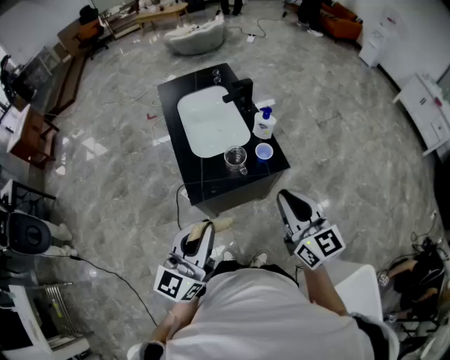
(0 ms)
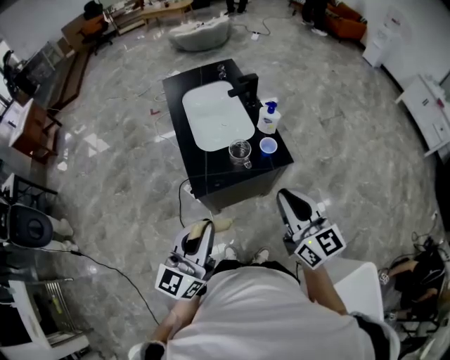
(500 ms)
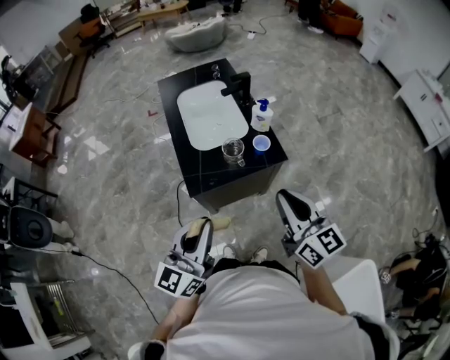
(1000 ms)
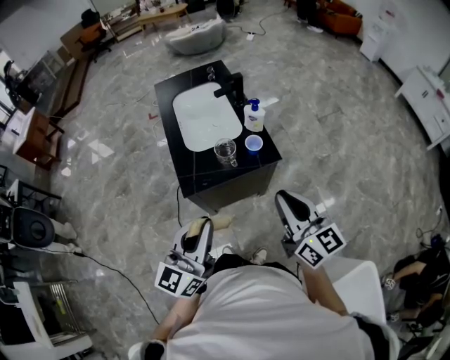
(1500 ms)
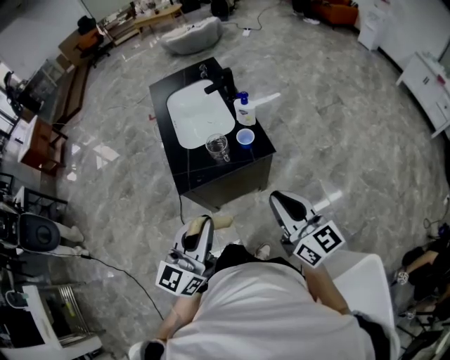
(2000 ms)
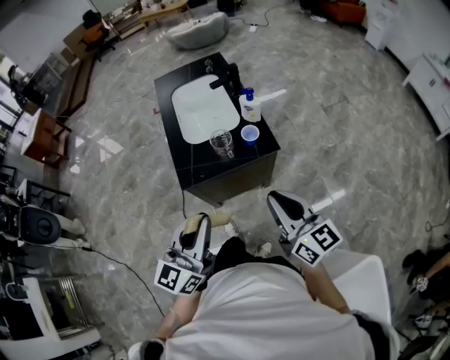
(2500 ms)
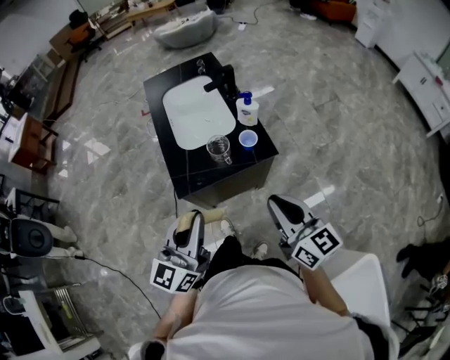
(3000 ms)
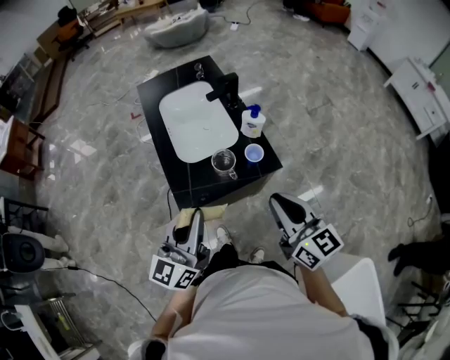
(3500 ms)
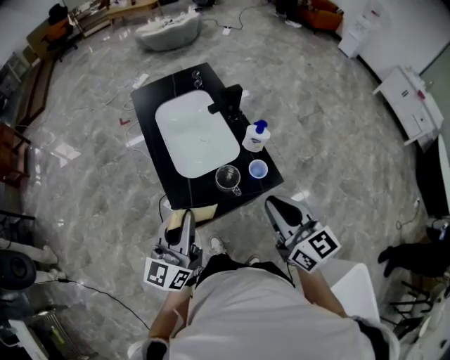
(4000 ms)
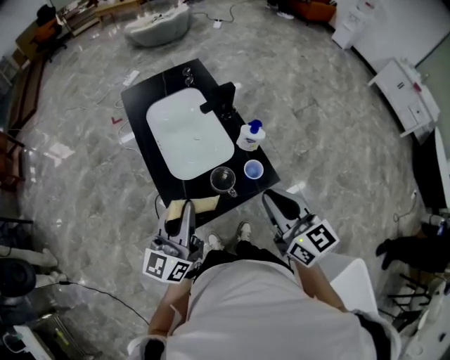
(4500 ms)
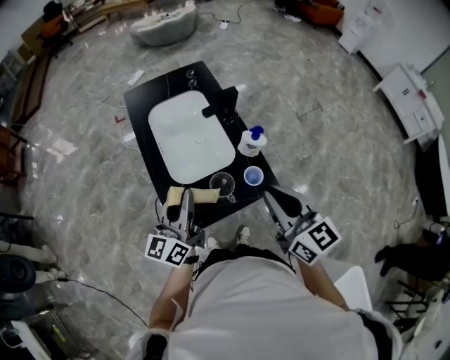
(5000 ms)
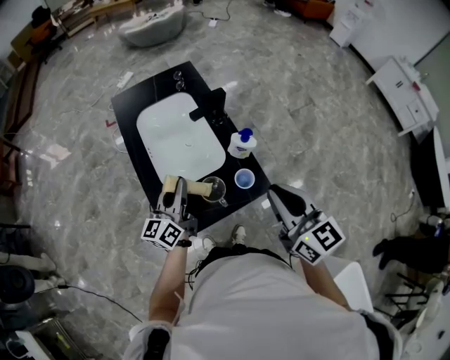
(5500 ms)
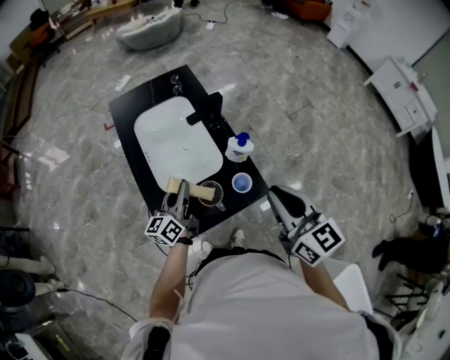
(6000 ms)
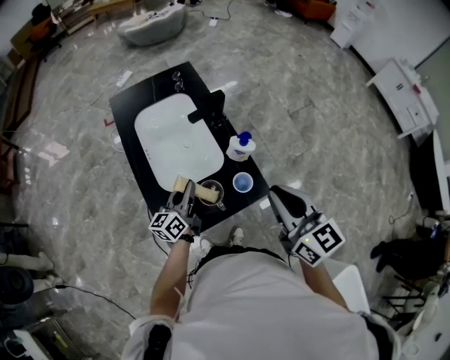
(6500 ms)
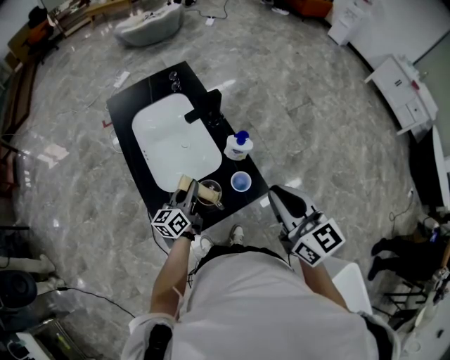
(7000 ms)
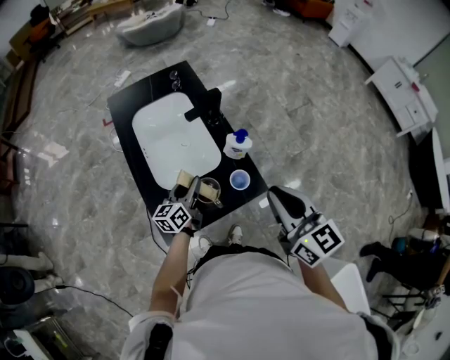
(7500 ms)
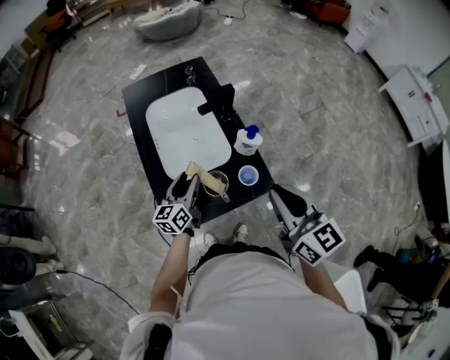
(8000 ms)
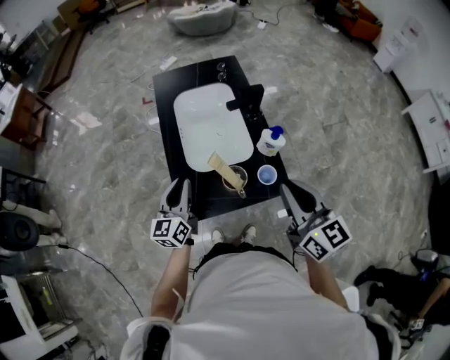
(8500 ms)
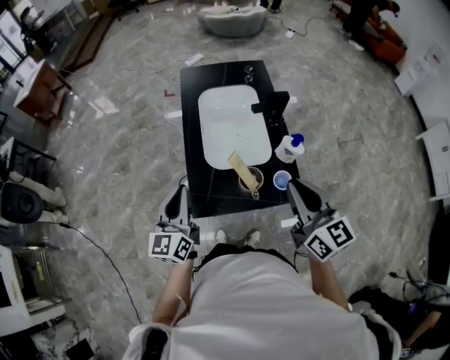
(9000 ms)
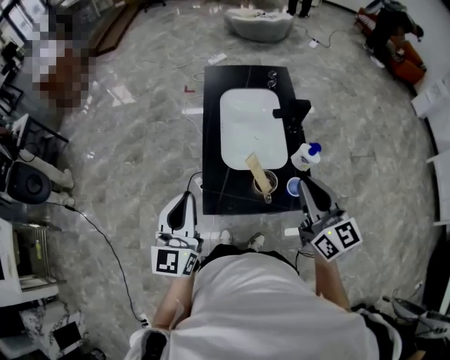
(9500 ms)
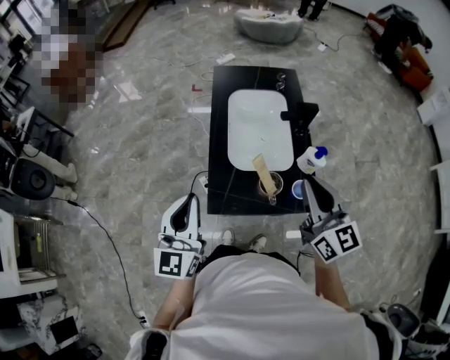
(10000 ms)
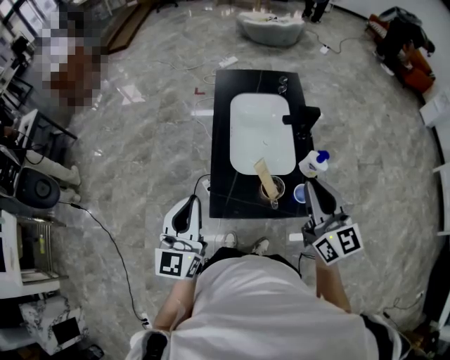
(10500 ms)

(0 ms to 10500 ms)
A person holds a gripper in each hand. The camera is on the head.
0 ms - 2000 ms: The right gripper moves to the right and backward, roughly 10 cm. The left gripper heads to the right, covering roughly 10 cm.
2000 ms - 4000 ms: The two grippers go approximately 20 cm forward and to the left.
4000 ms - 6500 ms: The left gripper is displaced downward and forward by about 25 cm, and turns by some 20 degrees, while the right gripper is displaced forward and to the right by roughly 10 cm.
6500 ms - 8500 ms: The left gripper travels to the left, backward and upward by roughly 15 cm, swivels some 30 degrees, and opens, then closes again.
8500 ms - 10500 ms: The right gripper moves forward, roughly 5 cm. The left gripper goes roughly 20 cm upward, backward and to the left, and turns by some 20 degrees.

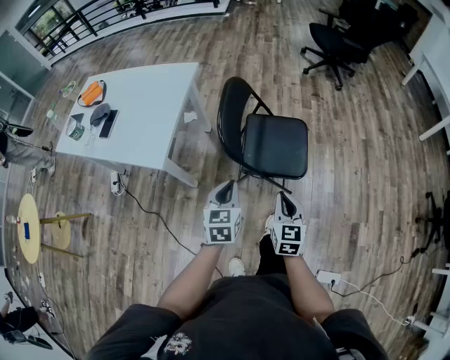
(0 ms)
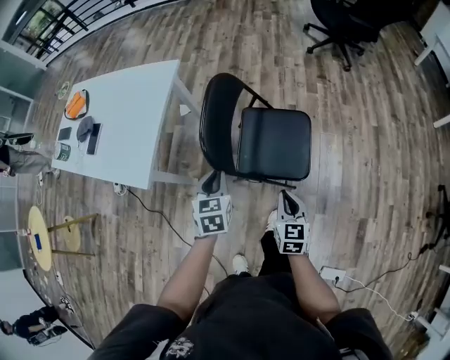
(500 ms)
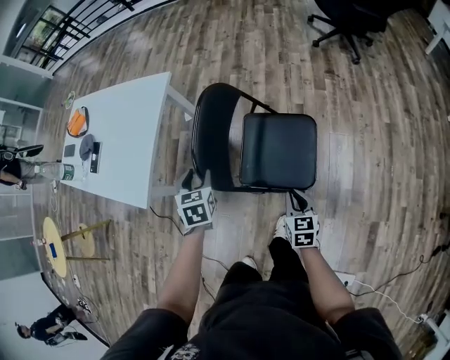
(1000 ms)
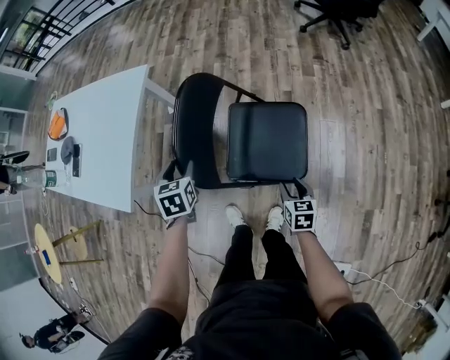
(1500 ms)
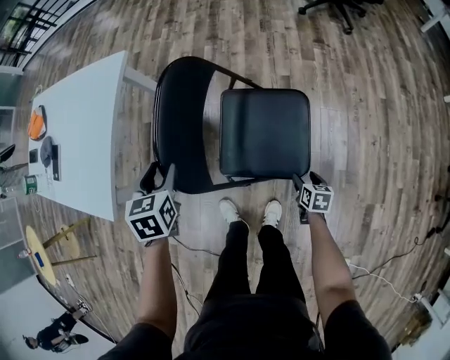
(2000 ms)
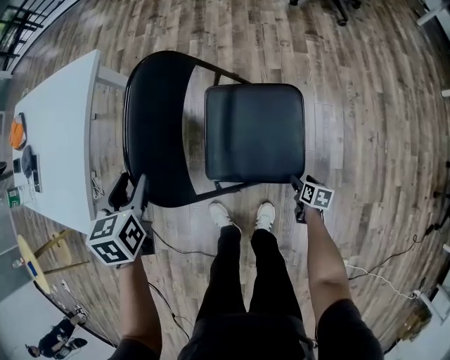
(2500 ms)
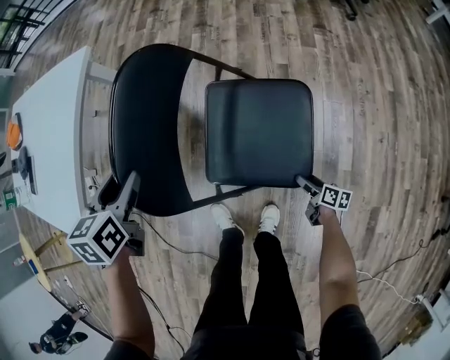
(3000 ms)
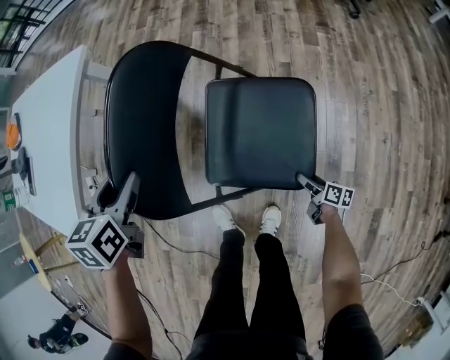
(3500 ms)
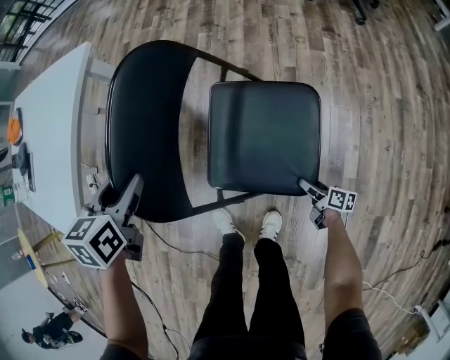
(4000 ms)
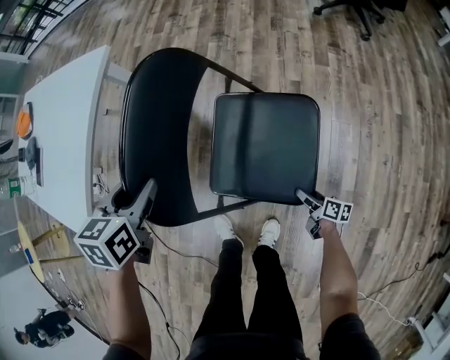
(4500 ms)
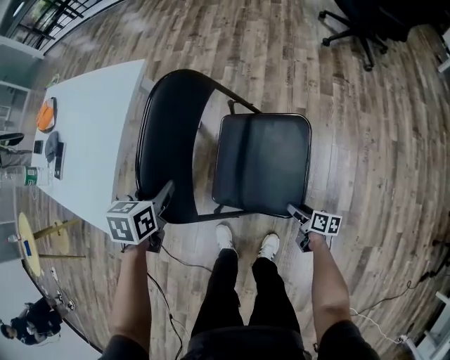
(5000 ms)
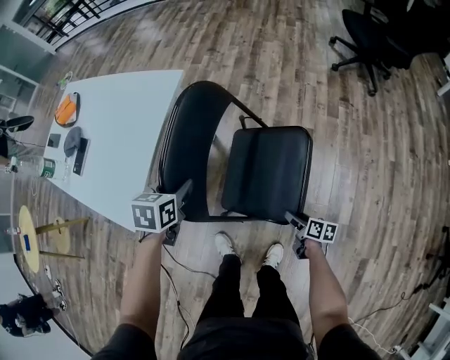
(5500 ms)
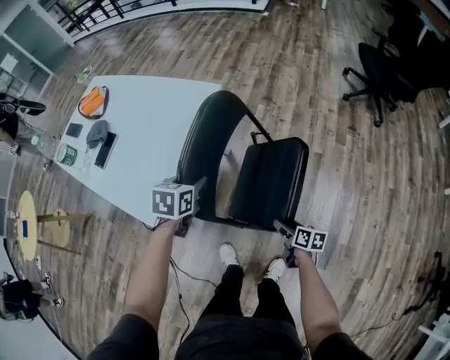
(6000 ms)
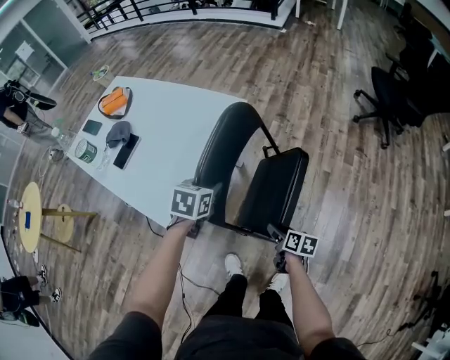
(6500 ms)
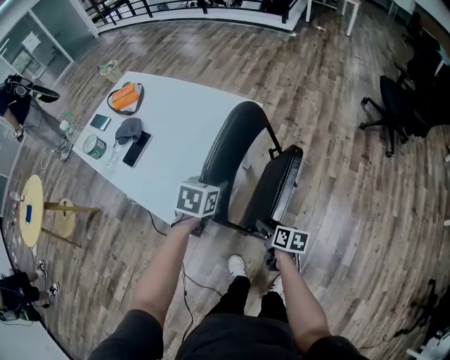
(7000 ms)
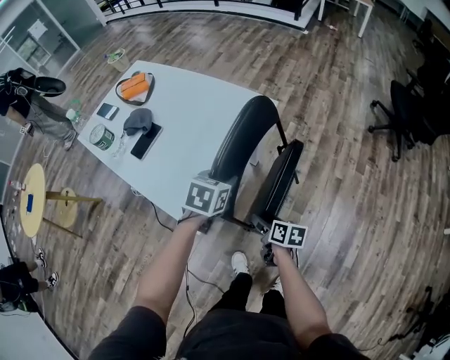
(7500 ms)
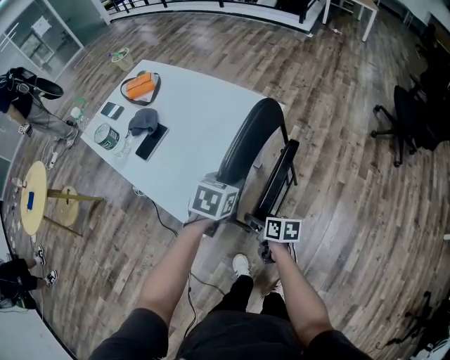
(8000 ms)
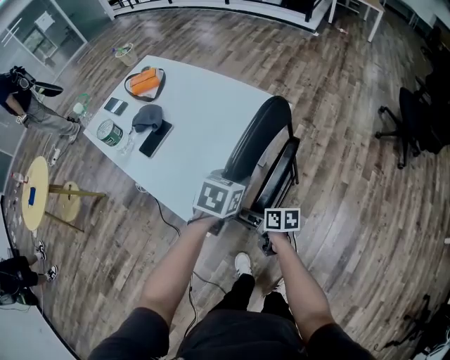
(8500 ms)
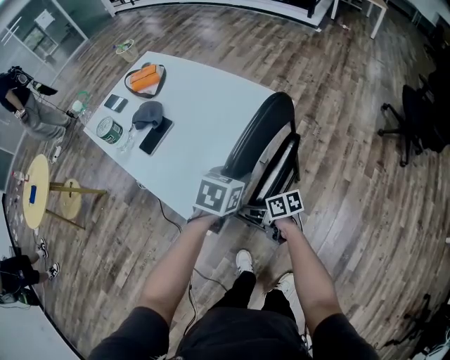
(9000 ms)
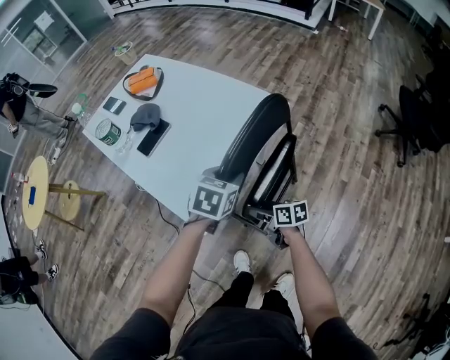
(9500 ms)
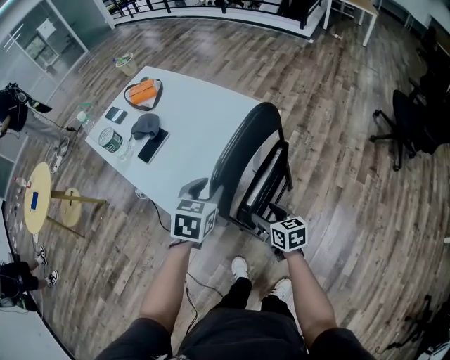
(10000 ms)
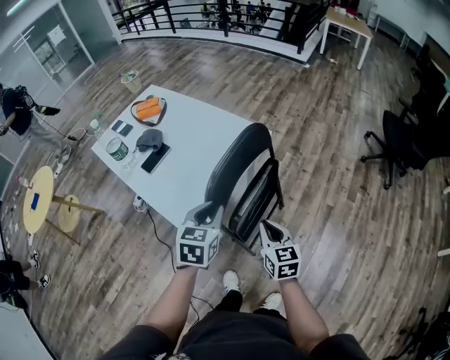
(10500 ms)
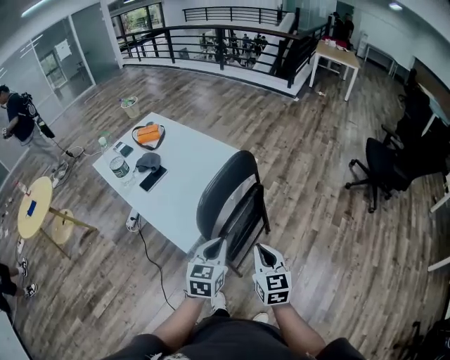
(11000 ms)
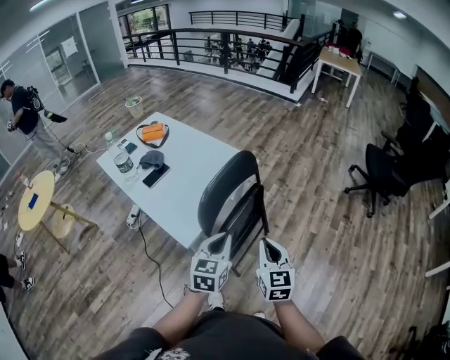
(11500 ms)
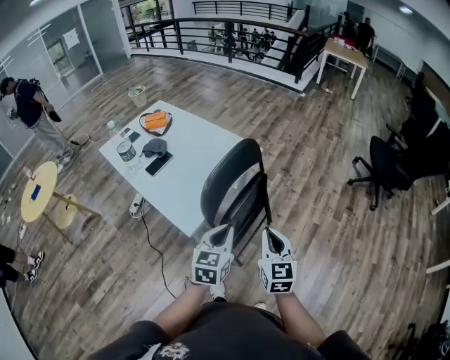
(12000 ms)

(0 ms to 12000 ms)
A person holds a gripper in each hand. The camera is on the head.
0 ms - 2000 ms: The right gripper travels downward, to the right and forward by some 50 cm, points its fingers some 30 degrees further downward, and opens. Meanwhile the left gripper goes about 30 cm forward, turns by about 20 degrees, and opens up.
2000 ms - 4000 ms: The left gripper is displaced downward by some 5 cm, while the right gripper heads downward, covering about 15 cm, and turns by about 40 degrees.
4000 ms - 6000 ms: The left gripper moves to the left and upward, roughly 15 cm. The right gripper goes approximately 35 cm upward and to the left.
6000 ms - 8000 ms: The left gripper moves to the left, some 10 cm. The right gripper moves to the left and forward, about 30 cm.
8000 ms - 10000 ms: The grippers both shift upward by approximately 5 cm. The right gripper turns by about 30 degrees.
10000 ms - 12000 ms: The right gripper heads upward and backward, covering approximately 25 cm, swivels roughly 40 degrees, and closes. The left gripper heads backward, to the right and upward, covering about 25 cm, swivels some 20 degrees, and closes its fingers.

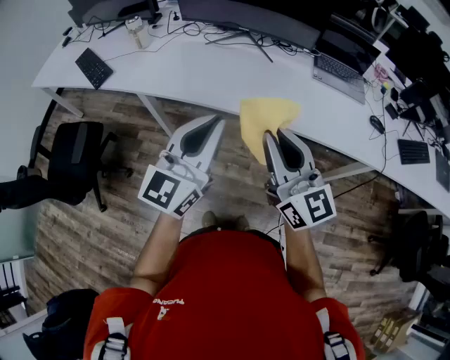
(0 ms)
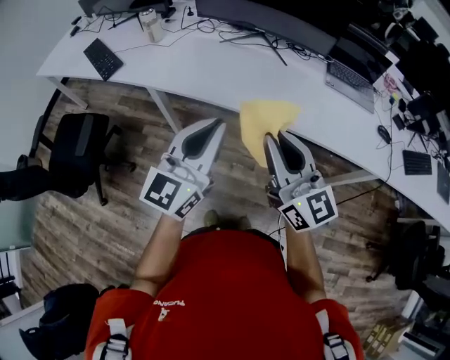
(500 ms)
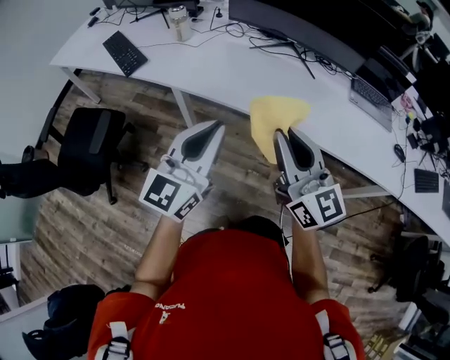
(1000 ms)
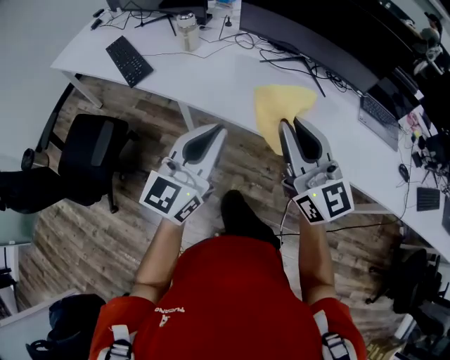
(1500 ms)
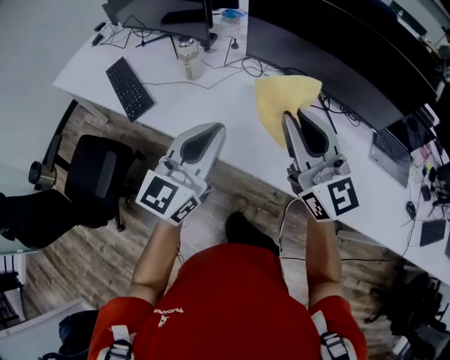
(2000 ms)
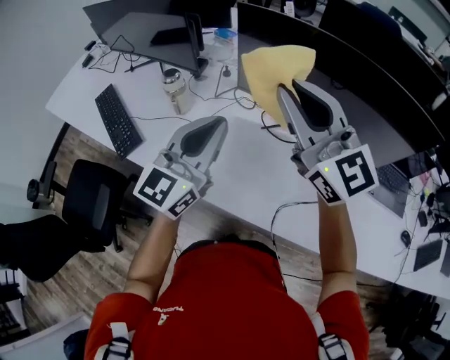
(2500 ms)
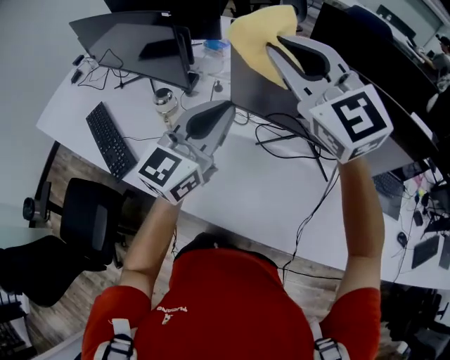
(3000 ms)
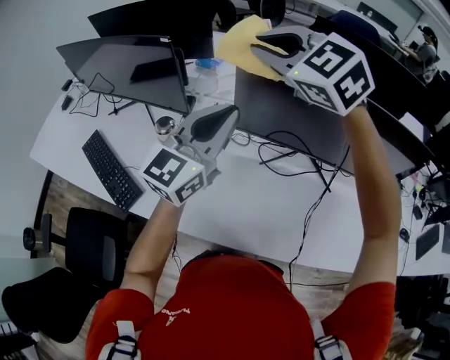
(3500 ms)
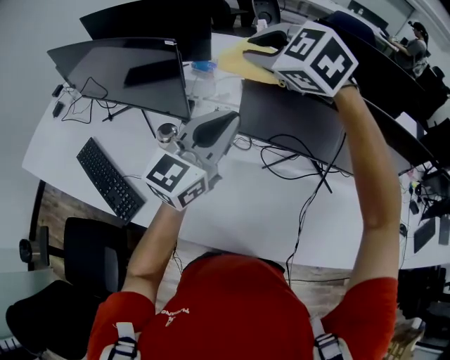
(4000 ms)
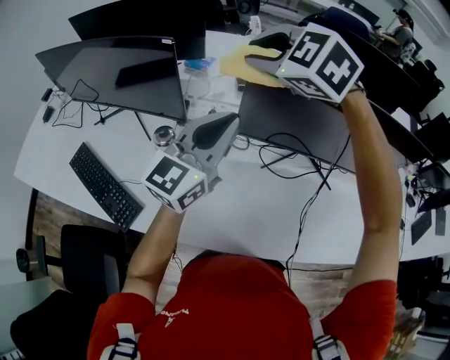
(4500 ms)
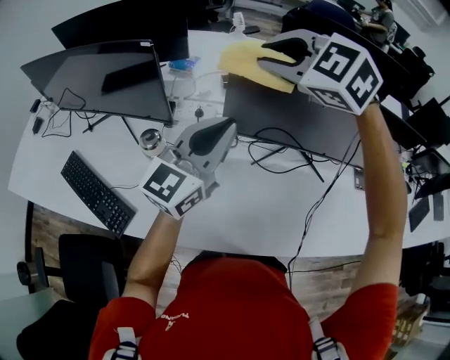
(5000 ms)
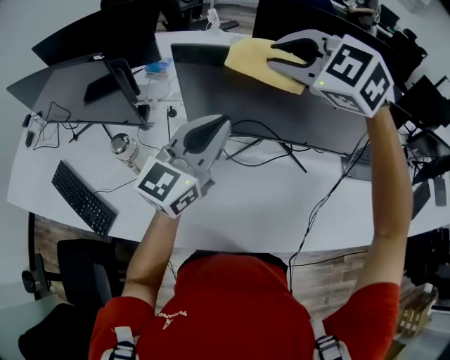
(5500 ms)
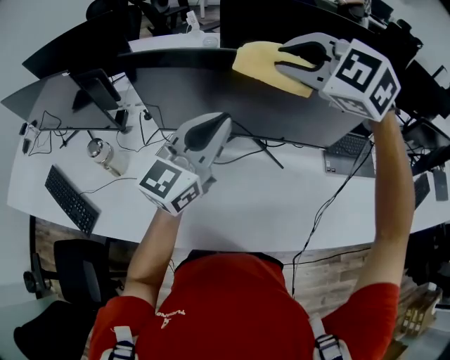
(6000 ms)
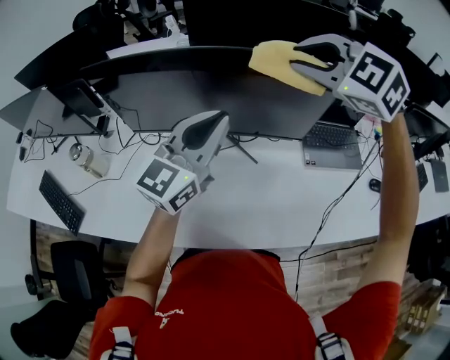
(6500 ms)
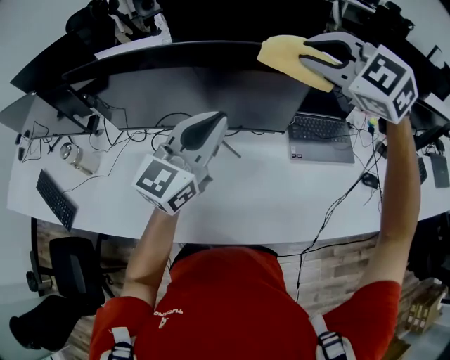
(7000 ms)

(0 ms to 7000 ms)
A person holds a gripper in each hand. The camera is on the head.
0 ms - 2000 ms: The two grippers go approximately 35 cm forward and to the left.
2000 ms - 3500 ms: Both grippers move forward, about 30 cm. The right gripper tilts its fingers some 40 degrees downward.
5000 ms - 7000 ms: The pair of grippers is taken to the right, some 50 cm.
